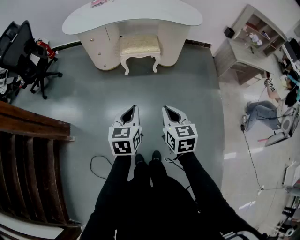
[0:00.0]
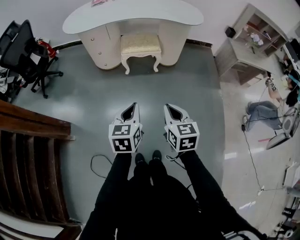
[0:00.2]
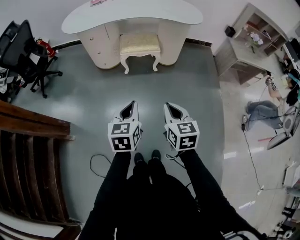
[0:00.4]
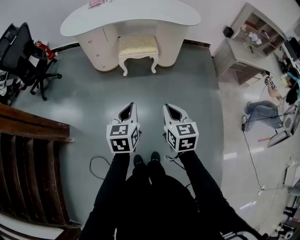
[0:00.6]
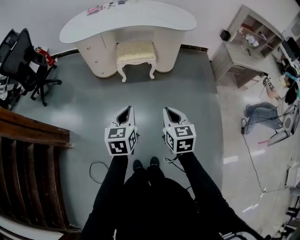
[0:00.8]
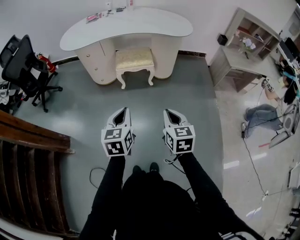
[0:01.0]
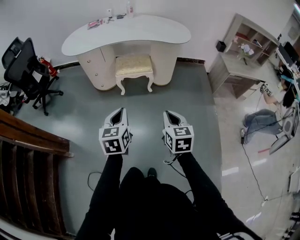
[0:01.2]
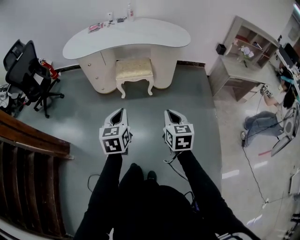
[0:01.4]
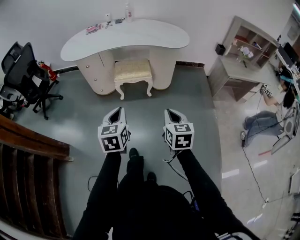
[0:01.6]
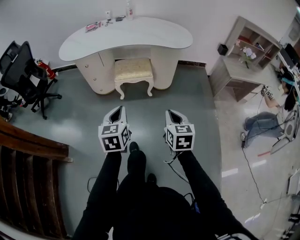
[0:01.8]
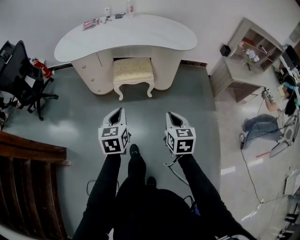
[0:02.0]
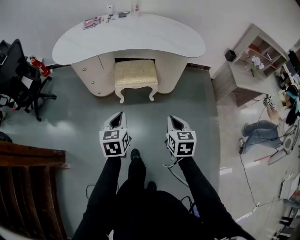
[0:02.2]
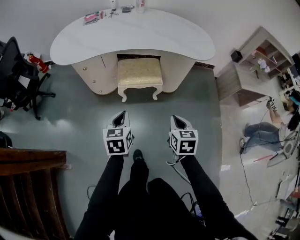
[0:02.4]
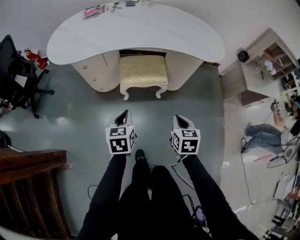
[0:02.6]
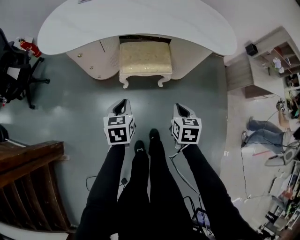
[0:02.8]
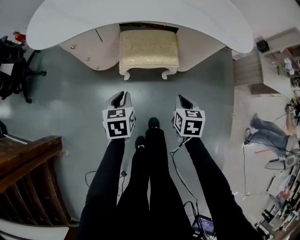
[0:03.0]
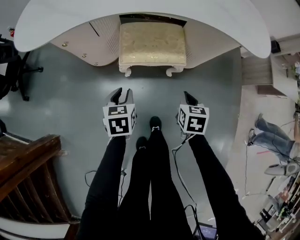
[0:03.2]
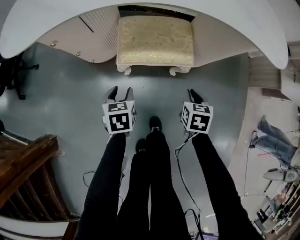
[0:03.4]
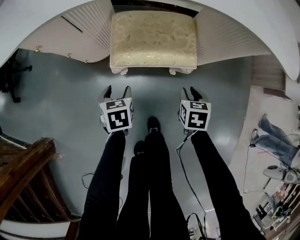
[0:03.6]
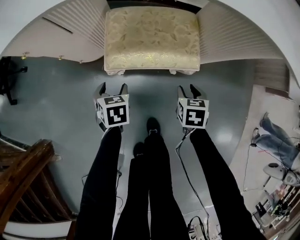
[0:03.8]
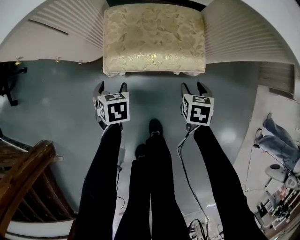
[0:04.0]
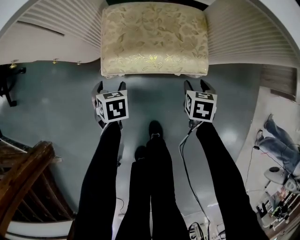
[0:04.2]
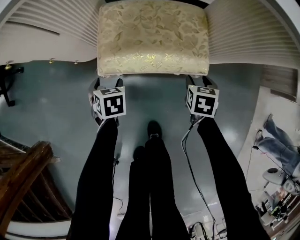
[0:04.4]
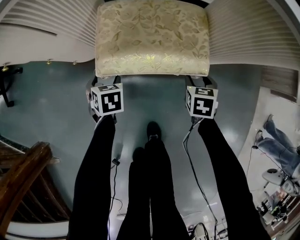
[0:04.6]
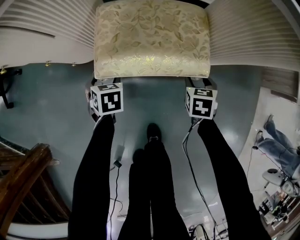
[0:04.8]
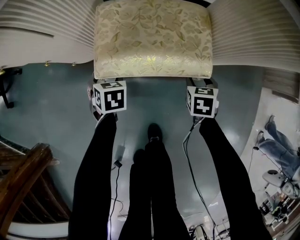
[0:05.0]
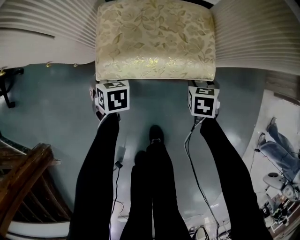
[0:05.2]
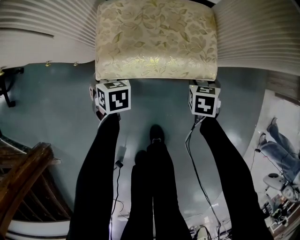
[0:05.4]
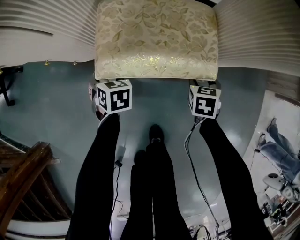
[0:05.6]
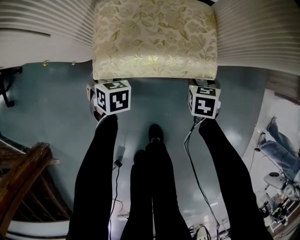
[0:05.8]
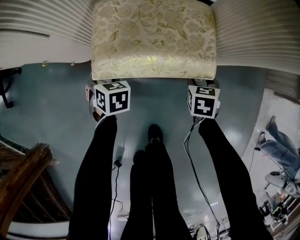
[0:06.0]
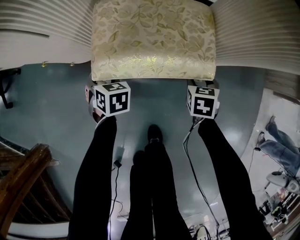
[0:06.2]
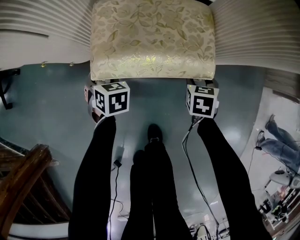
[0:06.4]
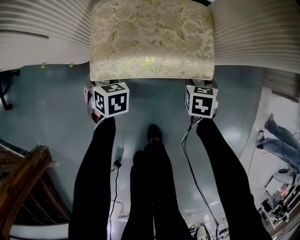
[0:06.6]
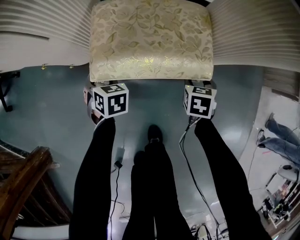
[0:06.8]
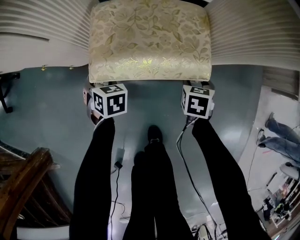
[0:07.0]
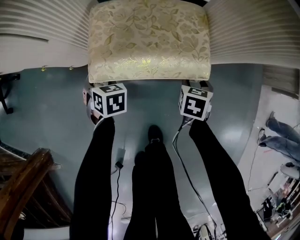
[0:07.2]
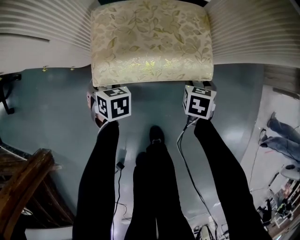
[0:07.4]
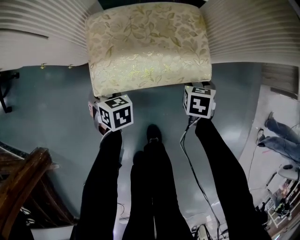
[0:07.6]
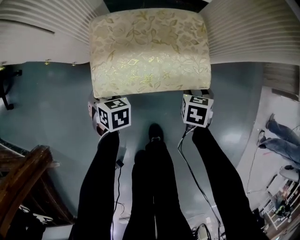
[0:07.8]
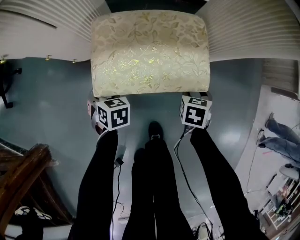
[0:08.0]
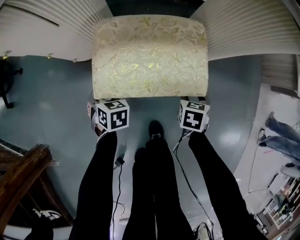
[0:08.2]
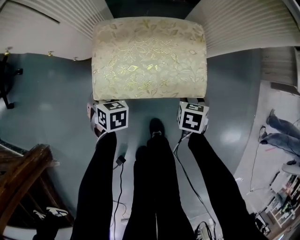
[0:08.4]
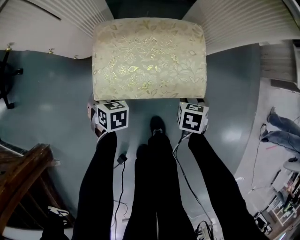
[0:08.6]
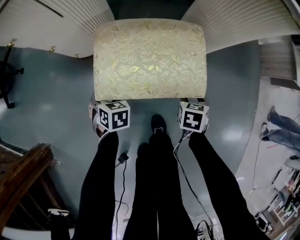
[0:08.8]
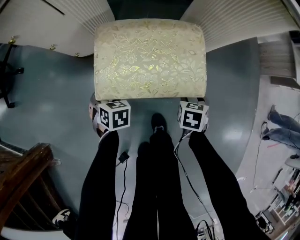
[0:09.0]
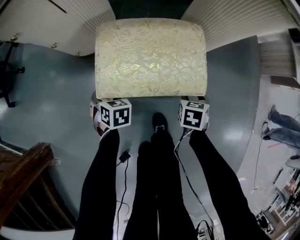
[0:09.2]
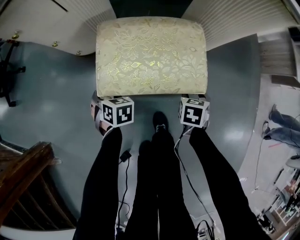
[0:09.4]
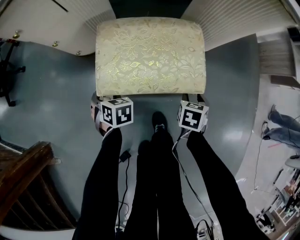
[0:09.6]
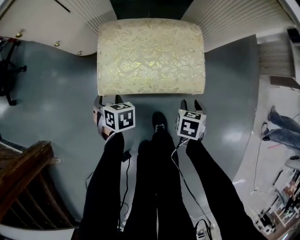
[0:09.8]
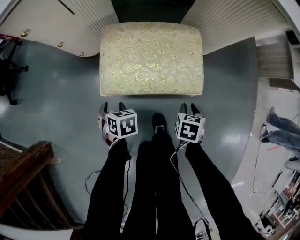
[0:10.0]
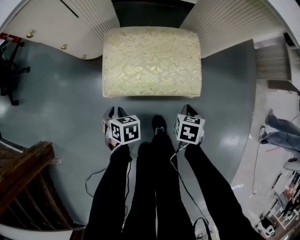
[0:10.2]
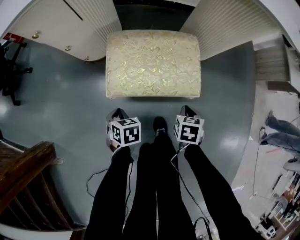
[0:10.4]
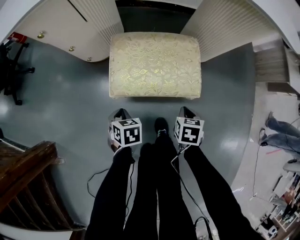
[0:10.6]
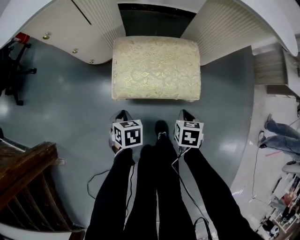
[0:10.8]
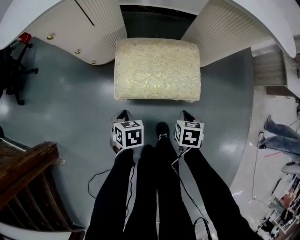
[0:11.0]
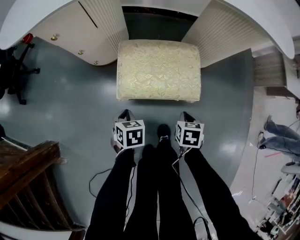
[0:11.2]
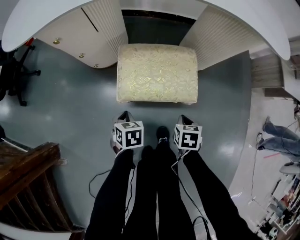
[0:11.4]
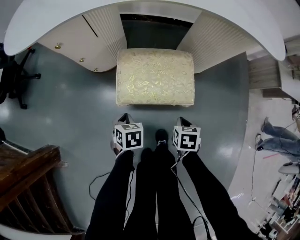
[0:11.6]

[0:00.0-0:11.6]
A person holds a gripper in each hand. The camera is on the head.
0:00.0 to 0:01.4: The right gripper shifts roughly 10 cm to the right and forward; the left gripper travels forward by some 5 cm.
0:01.4 to 0:02.8: The two grippers go roughly 35 cm forward and downward.
0:02.8 to 0:04.4: The two grippers go approximately 40 cm downward and forward. The left gripper turns by some 30 degrees, and opens; the right gripper opens its fingers.
0:04.4 to 0:08.8: The grippers move only a little.
0:08.8 to 0:10.2: The right gripper shifts about 5 cm backward, and closes up. The left gripper goes some 10 cm backward, and closes up.
0:10.2 to 0:11.6: The grippers both shift upward by roughly 10 cm.

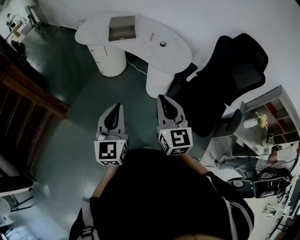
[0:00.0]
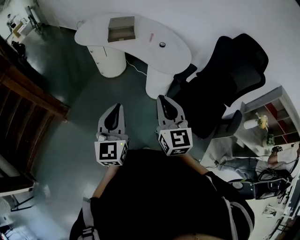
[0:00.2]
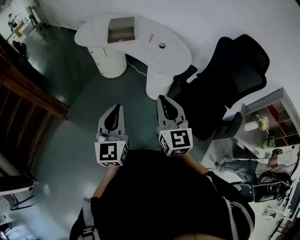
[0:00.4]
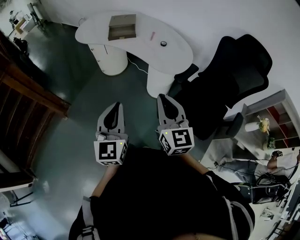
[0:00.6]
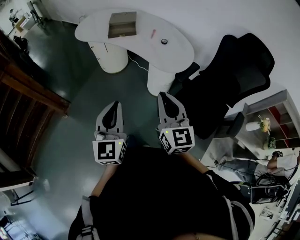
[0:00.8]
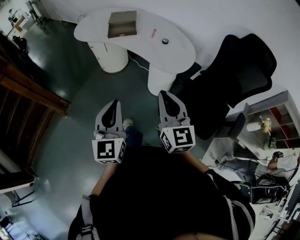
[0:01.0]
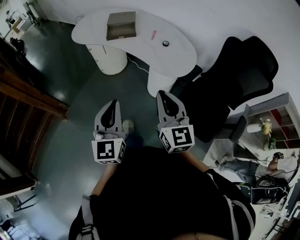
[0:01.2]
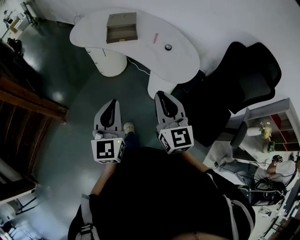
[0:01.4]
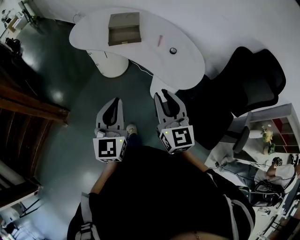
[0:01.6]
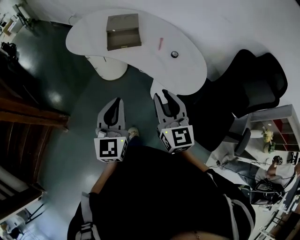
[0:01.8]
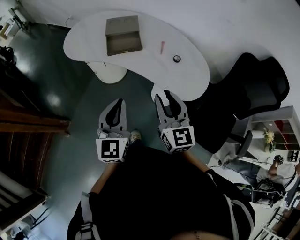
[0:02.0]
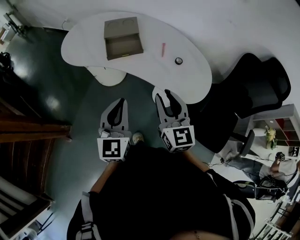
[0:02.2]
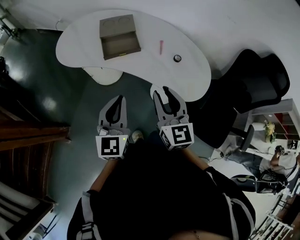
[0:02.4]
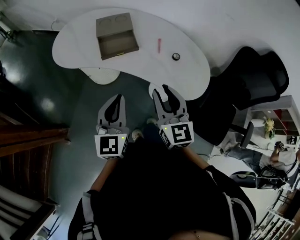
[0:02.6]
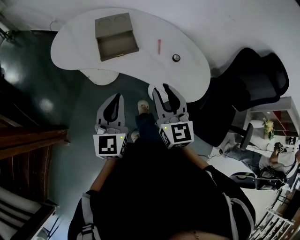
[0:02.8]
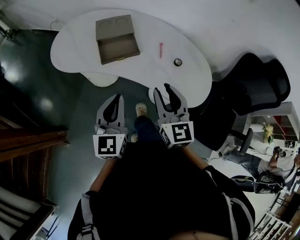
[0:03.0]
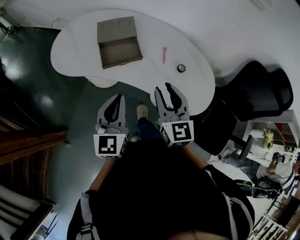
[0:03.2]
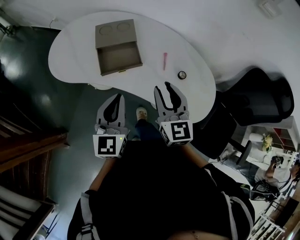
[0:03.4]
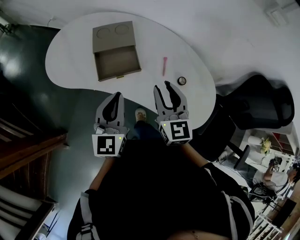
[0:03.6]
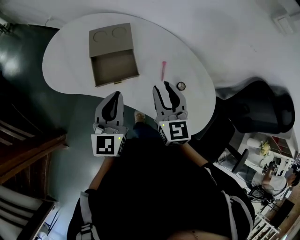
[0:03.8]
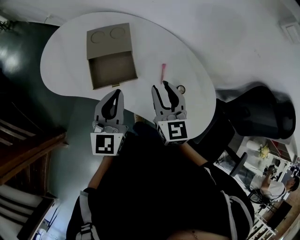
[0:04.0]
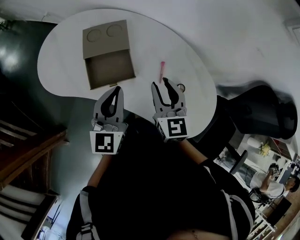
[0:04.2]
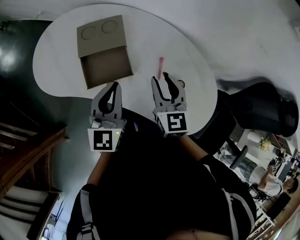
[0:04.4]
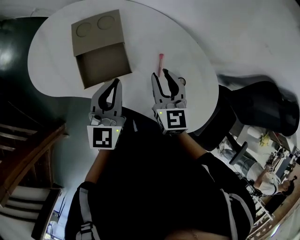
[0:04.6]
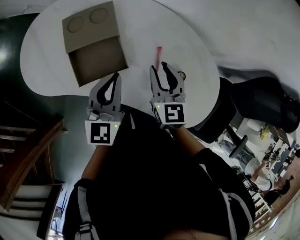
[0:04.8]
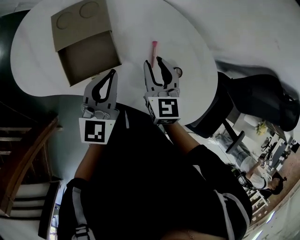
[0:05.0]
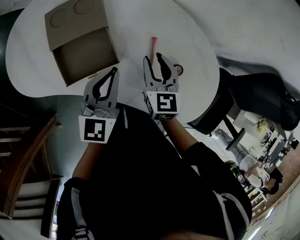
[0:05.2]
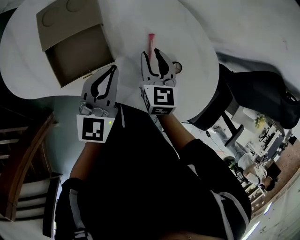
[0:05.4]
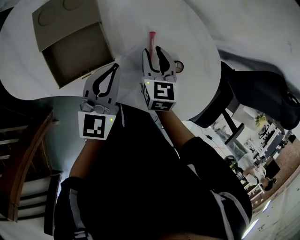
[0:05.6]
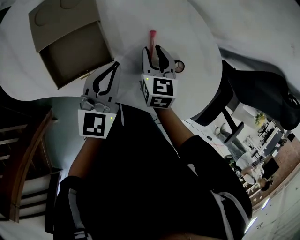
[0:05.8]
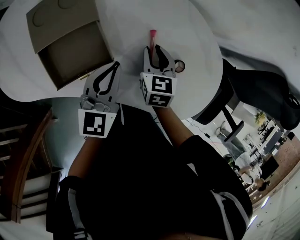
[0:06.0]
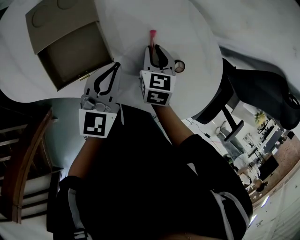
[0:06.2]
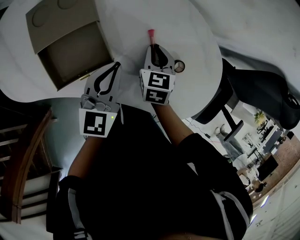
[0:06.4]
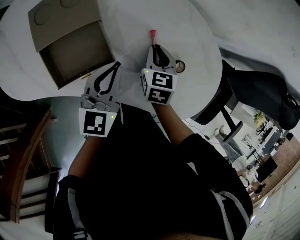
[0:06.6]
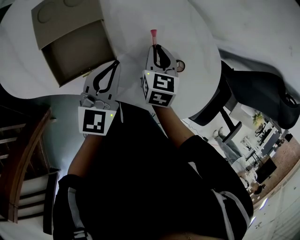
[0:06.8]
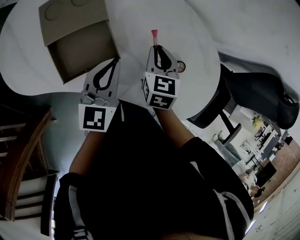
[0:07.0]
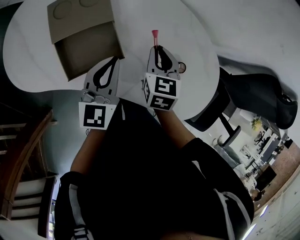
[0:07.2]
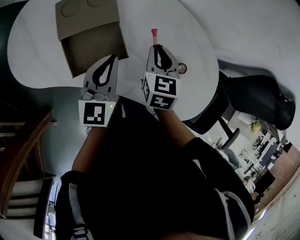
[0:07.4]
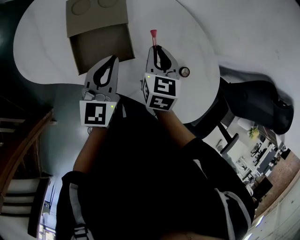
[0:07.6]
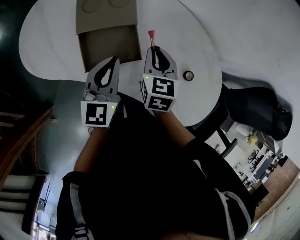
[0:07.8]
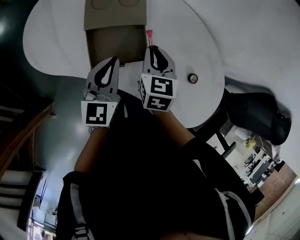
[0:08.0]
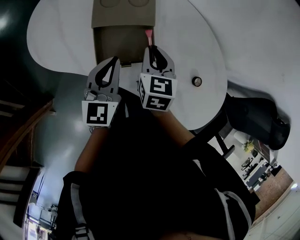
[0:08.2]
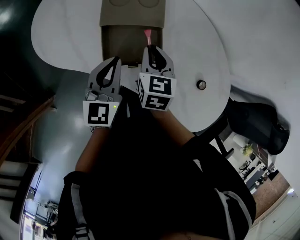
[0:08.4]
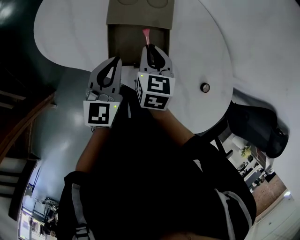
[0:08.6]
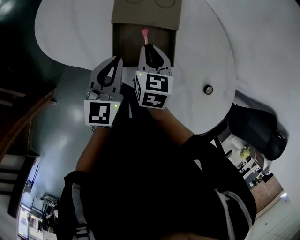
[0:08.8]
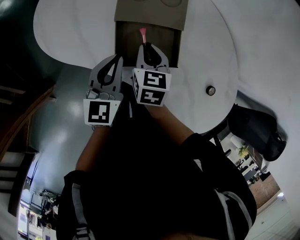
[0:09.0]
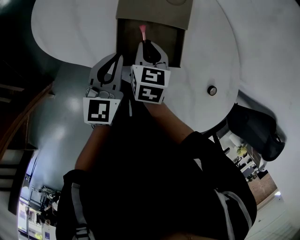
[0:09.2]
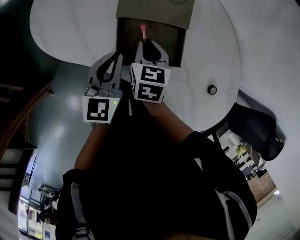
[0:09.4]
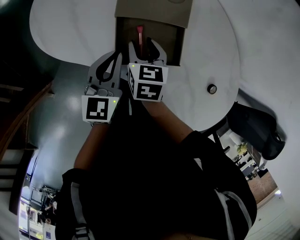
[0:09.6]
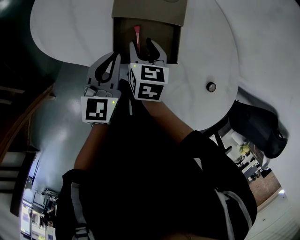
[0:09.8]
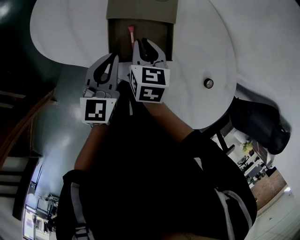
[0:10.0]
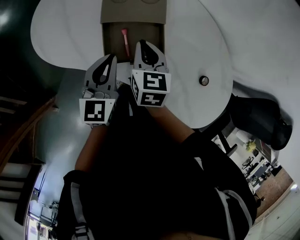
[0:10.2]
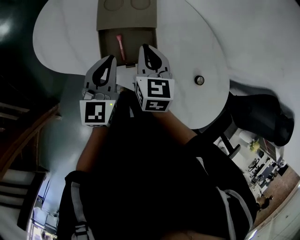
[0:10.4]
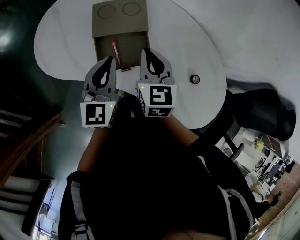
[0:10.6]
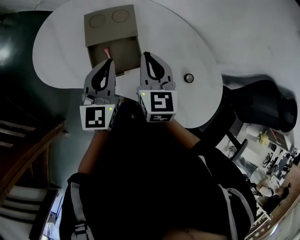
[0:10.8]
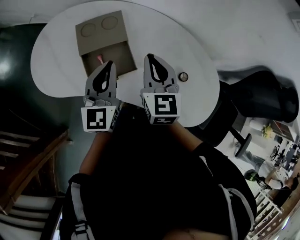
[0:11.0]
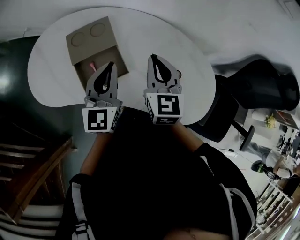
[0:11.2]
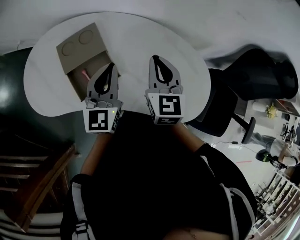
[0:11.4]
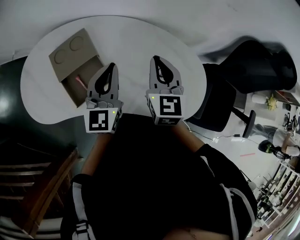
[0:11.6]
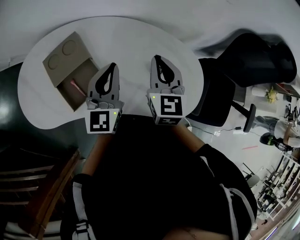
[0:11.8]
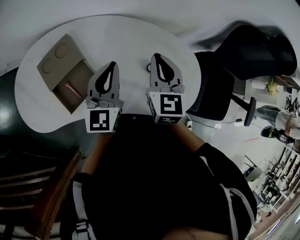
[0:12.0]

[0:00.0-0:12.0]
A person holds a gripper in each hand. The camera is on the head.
0:00.0 to 0:01.6: Both grippers move forward, approximately 20 cm.
0:01.6 to 0:03.0: Both grippers move forward, approximately 20 cm.
0:03.0 to 0:04.4: Both grippers travel together forward, roughly 25 cm.
0:04.4 to 0:06.0: Both grippers travel together downward, about 20 cm. The left gripper changes its angle by about 30 degrees. Meanwhile the right gripper rotates approximately 30 degrees.
0:06.0 to 0:07.6: The right gripper heads upward and to the left, covering some 15 cm. Meanwhile the left gripper shifts some 10 cm to the left and upward.
0:07.6 to 0:09.0: The grippers both shift to the left by about 20 cm.
0:09.0 to 0:10.4: The grippers both shift upward and to the right by roughly 10 cm. The right gripper opens, then closes again.
0:10.4 to 0:12.0: The right gripper moves roughly 30 cm, and changes its angle by roughly 30 degrees. The left gripper moves some 30 cm, and changes its angle by approximately 30 degrees.
